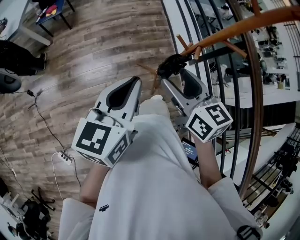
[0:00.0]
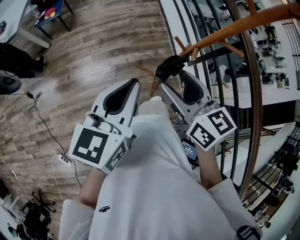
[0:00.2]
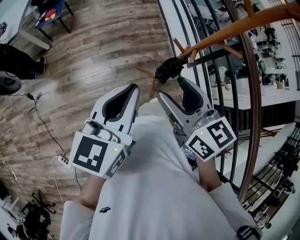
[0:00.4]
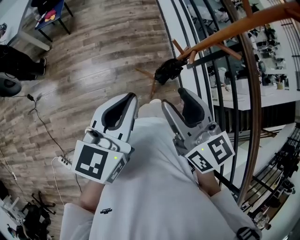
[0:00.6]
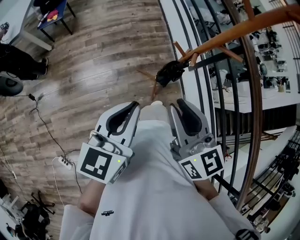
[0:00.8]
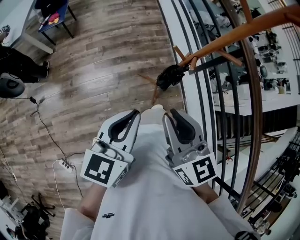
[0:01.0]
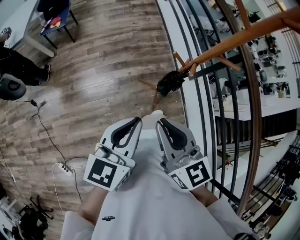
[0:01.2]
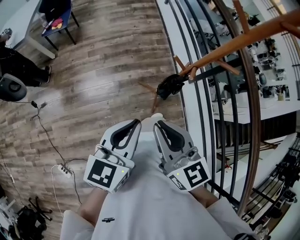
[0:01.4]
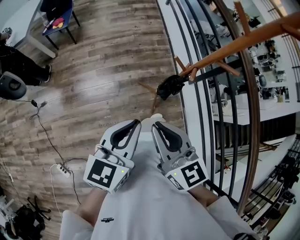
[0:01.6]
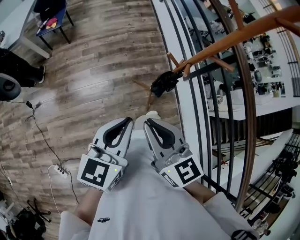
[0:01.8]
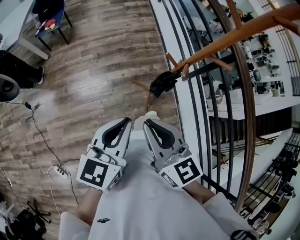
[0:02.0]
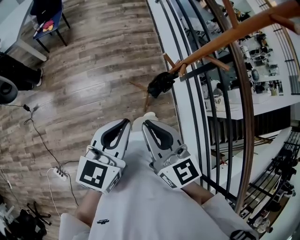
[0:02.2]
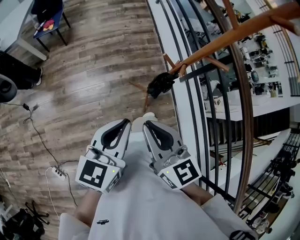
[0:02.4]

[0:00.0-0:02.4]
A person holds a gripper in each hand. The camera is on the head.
0:00.0 to 0:01.2: The right gripper is displaced backward by some 10 cm, and closes up; the left gripper heads backward, covering some 5 cm.
0:01.2 to 0:02.4: The grippers move only a little.

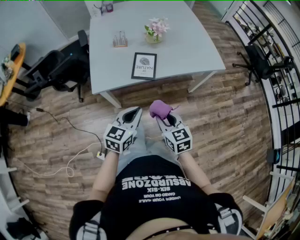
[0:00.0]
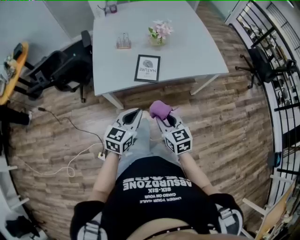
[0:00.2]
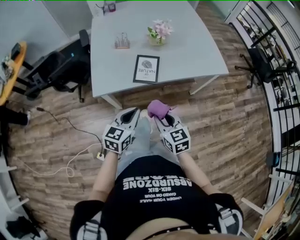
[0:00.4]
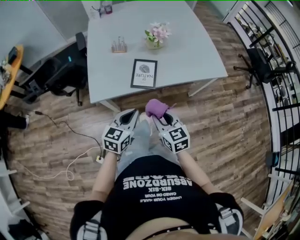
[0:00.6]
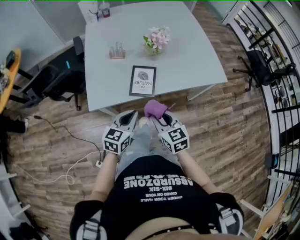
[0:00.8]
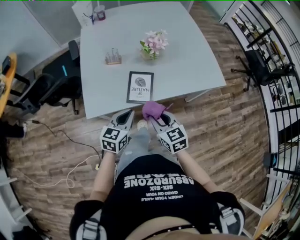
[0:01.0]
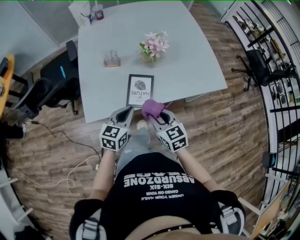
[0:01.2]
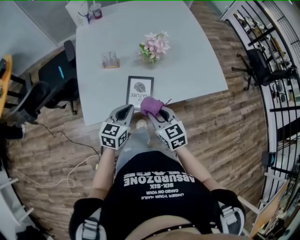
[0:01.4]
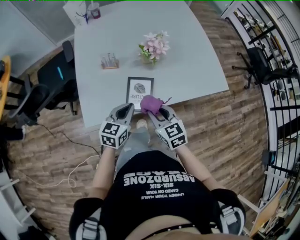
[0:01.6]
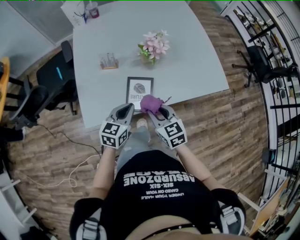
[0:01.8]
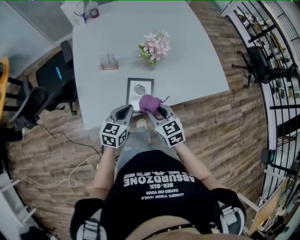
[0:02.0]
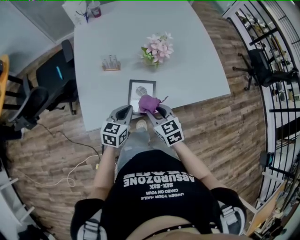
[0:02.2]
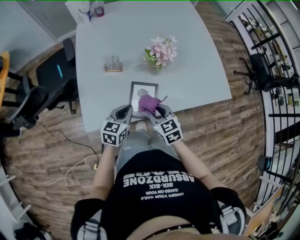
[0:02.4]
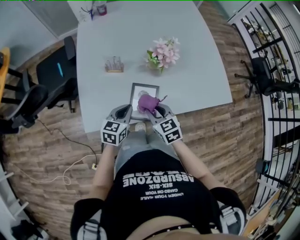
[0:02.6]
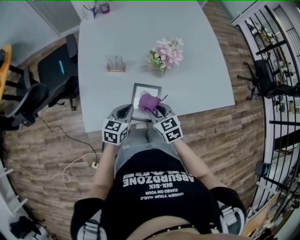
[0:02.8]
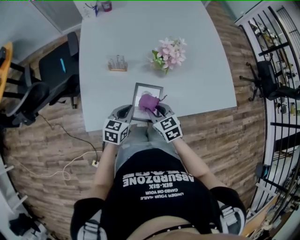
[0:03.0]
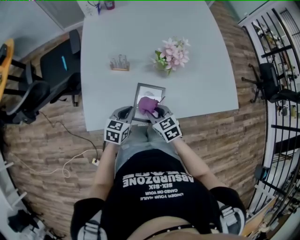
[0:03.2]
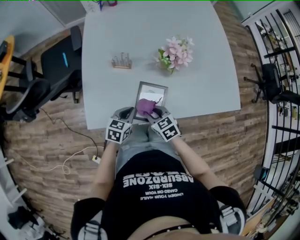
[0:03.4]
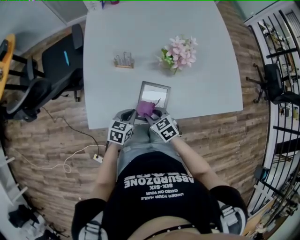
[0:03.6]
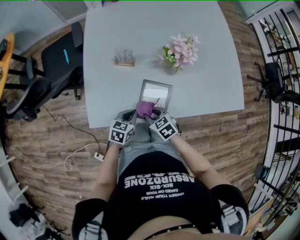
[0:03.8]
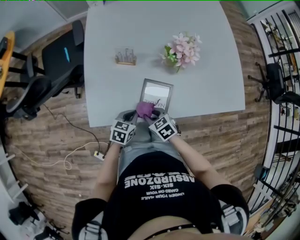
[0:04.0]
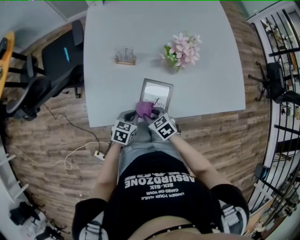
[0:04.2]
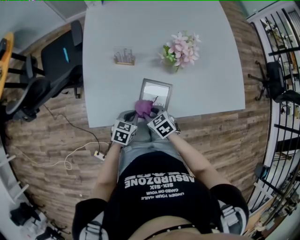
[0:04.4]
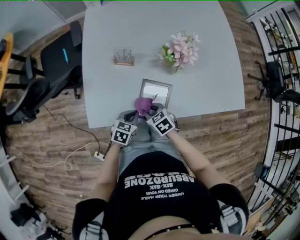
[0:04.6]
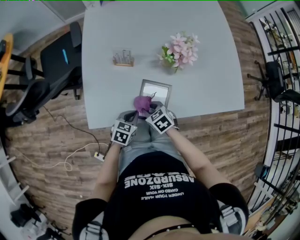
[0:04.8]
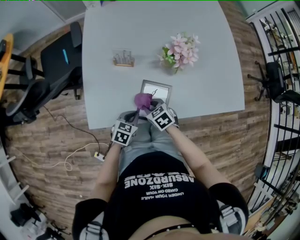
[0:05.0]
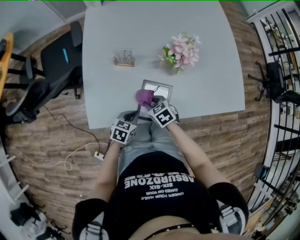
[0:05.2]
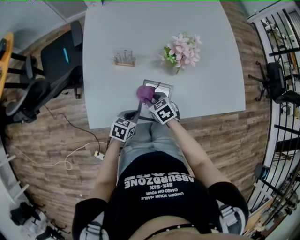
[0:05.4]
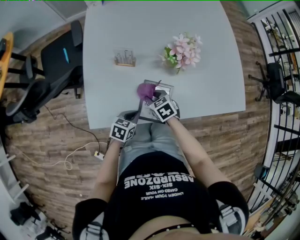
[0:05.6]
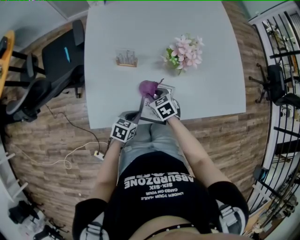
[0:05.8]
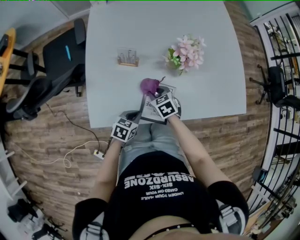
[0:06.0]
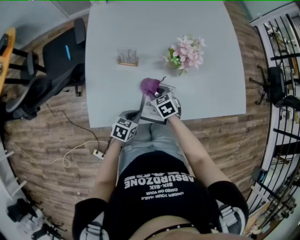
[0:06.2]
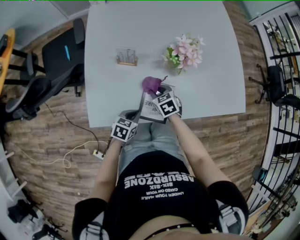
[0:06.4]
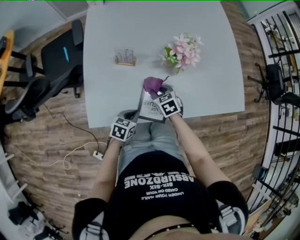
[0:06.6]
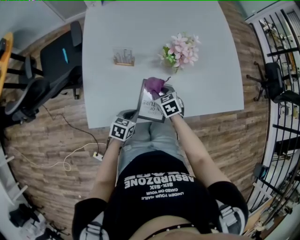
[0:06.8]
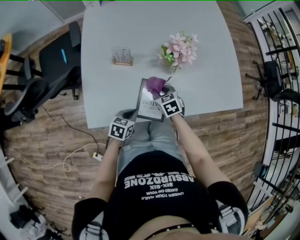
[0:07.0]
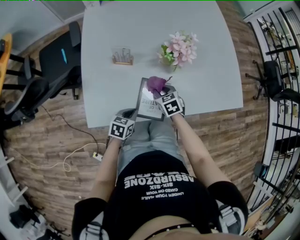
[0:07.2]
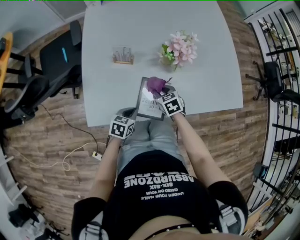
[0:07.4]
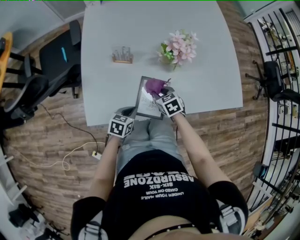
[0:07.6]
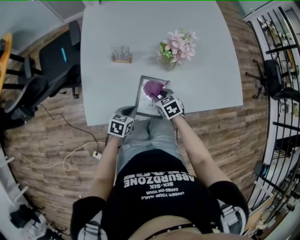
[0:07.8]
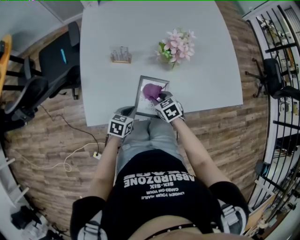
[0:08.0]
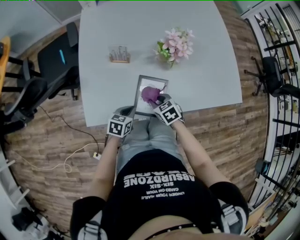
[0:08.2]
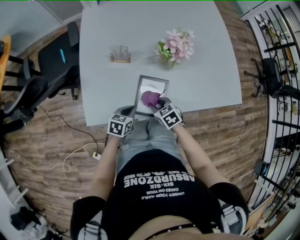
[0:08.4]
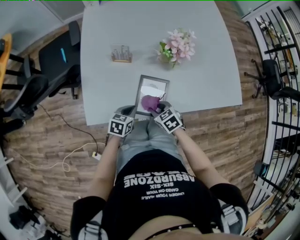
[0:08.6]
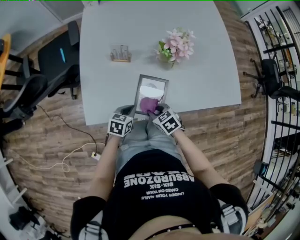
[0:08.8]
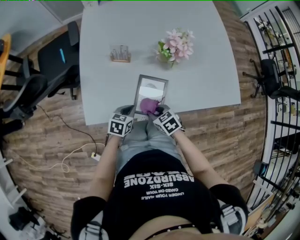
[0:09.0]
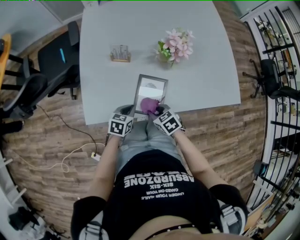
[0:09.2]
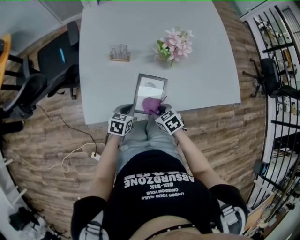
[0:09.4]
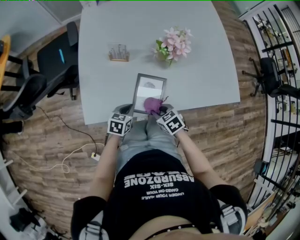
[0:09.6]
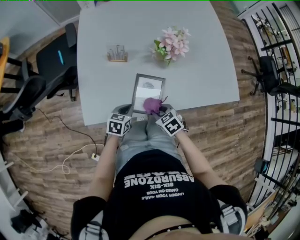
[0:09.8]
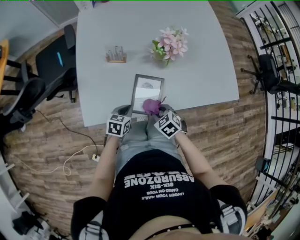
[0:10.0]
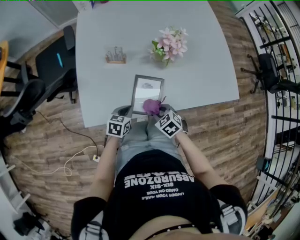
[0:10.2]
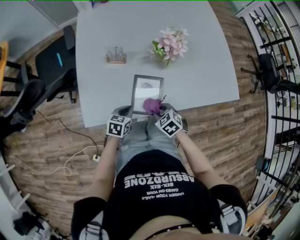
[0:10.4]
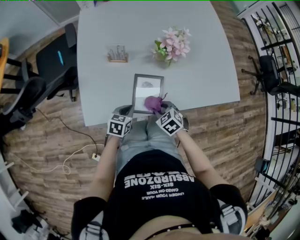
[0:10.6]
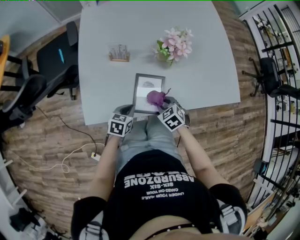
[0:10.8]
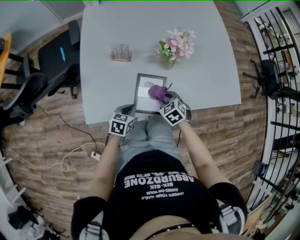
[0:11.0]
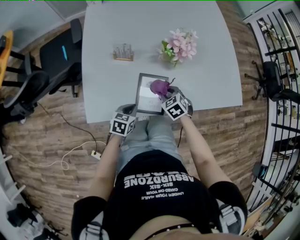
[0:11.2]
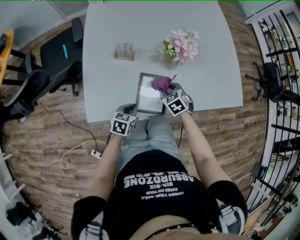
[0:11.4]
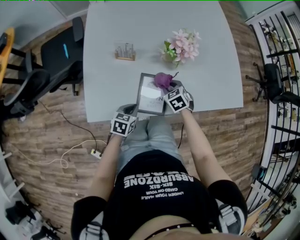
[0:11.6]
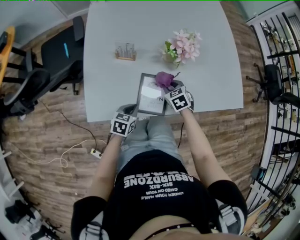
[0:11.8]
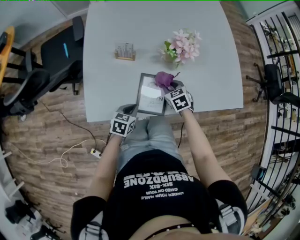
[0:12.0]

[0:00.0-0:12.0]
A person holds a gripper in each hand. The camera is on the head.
0:00.0 to 0:01.6: Both grippers travel together forward, some 25 cm.
0:01.6 to 0:03.0: The grippers both shift downward and forward by about 10 cm.
0:03.0 to 0:04.4: The left gripper travels downward by approximately 10 cm. The right gripper moves downward and to the left, approximately 10 cm, and turns by about 20 degrees.
0:04.4 to 0:06.0: The right gripper shifts some 10 cm forward.
0:06.0 to 0:07.6: The right gripper shifts some 5 cm to the right.
0:07.6 to 0:09.0: The right gripper shifts roughly 10 cm backward.
0:09.0 to 0:10.4: There are only small adjustments of the grippers.
0:10.4 to 0:12.0: The right gripper travels forward by some 15 cm.

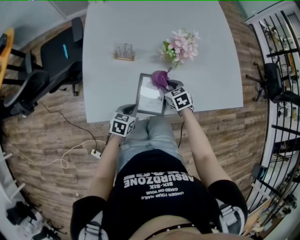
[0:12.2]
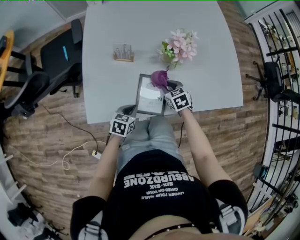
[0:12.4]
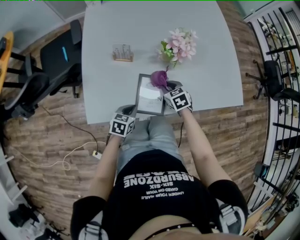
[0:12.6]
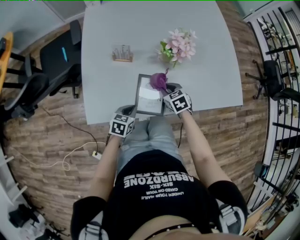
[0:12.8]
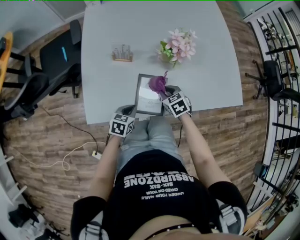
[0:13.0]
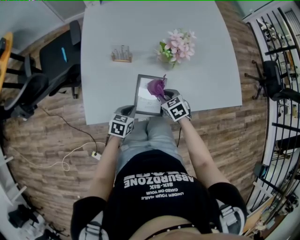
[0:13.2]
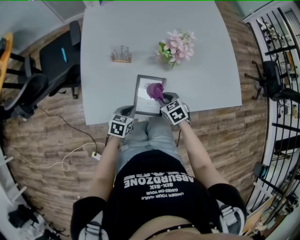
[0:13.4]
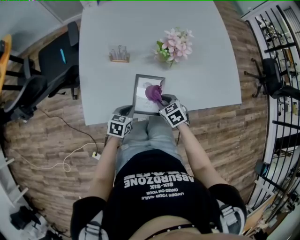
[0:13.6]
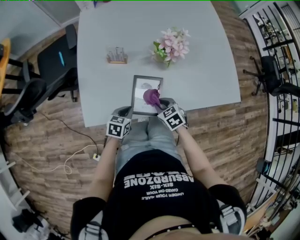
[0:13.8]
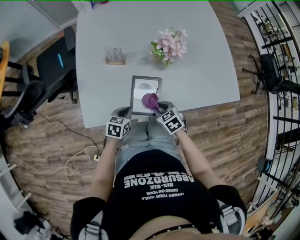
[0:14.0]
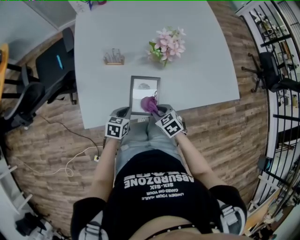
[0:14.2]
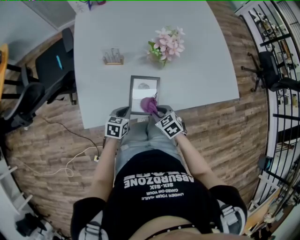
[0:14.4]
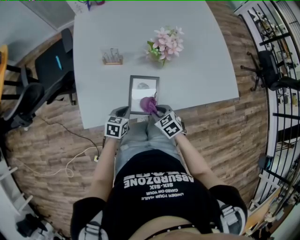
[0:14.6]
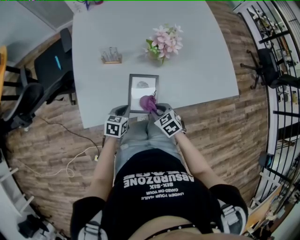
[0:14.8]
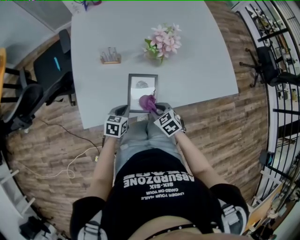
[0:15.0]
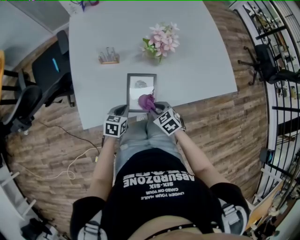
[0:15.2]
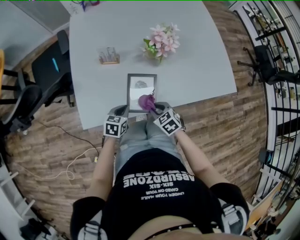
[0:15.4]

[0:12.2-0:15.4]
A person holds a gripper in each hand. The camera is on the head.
0:12.2 to 0:13.8: The right gripper travels backward by roughly 10 cm.
0:13.8 to 0:15.4: The grippers make only small movements.

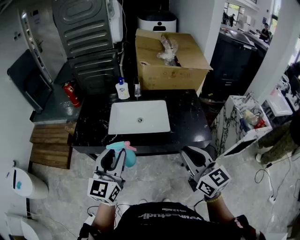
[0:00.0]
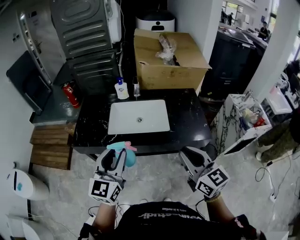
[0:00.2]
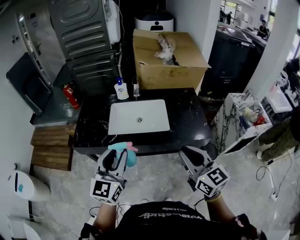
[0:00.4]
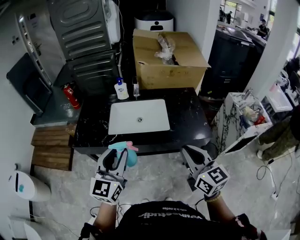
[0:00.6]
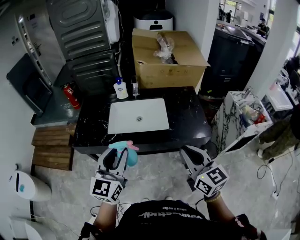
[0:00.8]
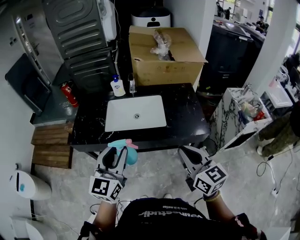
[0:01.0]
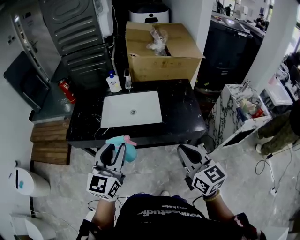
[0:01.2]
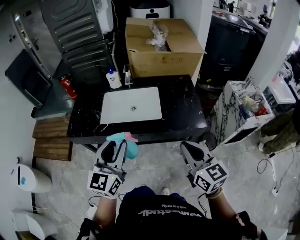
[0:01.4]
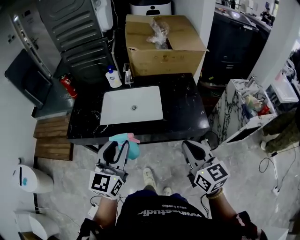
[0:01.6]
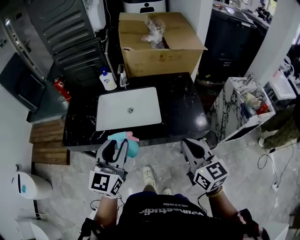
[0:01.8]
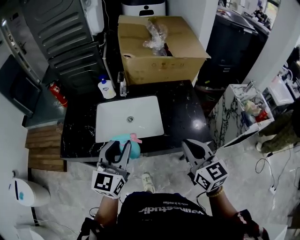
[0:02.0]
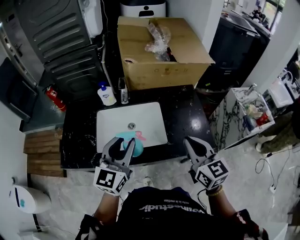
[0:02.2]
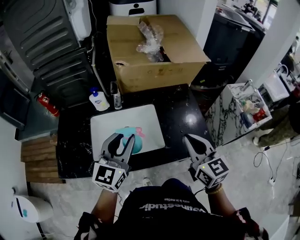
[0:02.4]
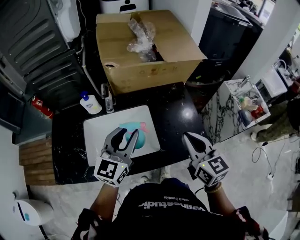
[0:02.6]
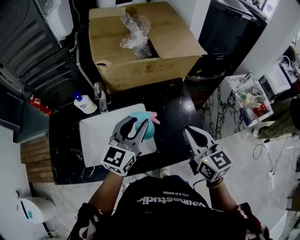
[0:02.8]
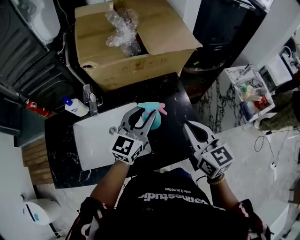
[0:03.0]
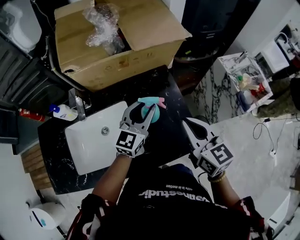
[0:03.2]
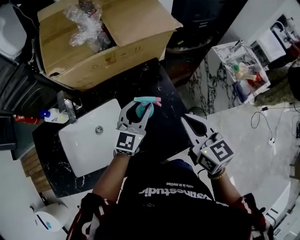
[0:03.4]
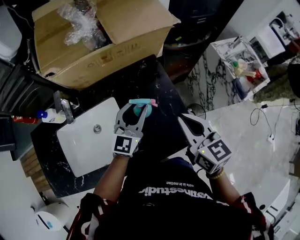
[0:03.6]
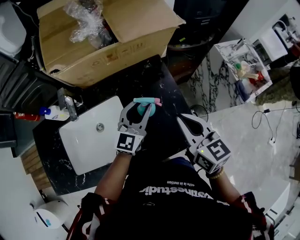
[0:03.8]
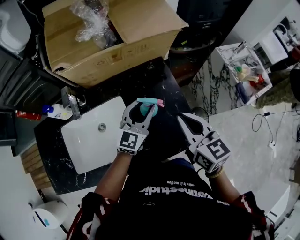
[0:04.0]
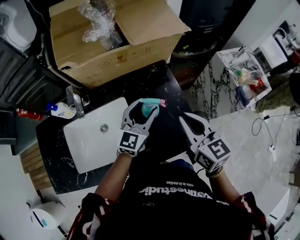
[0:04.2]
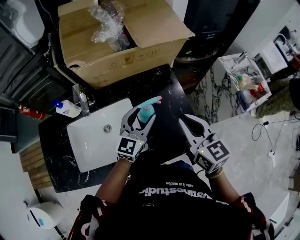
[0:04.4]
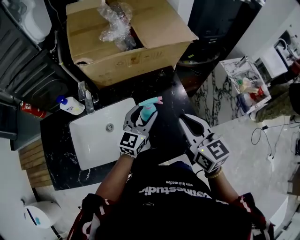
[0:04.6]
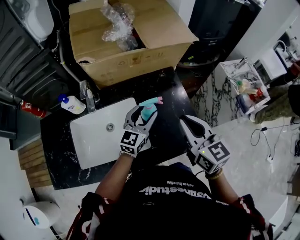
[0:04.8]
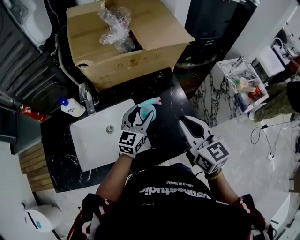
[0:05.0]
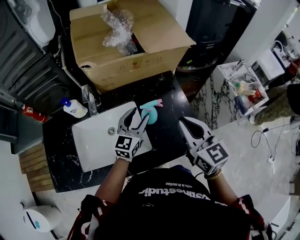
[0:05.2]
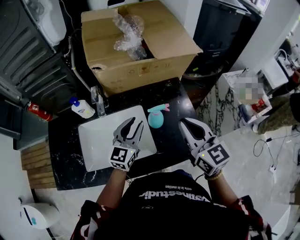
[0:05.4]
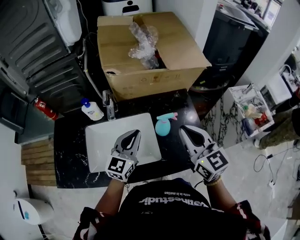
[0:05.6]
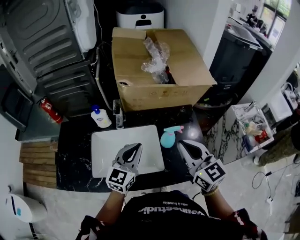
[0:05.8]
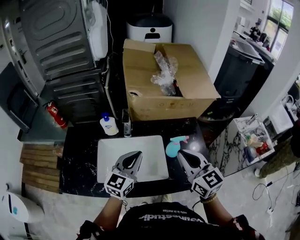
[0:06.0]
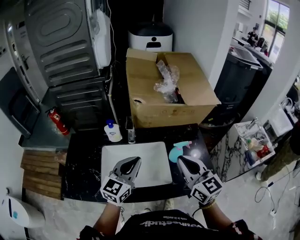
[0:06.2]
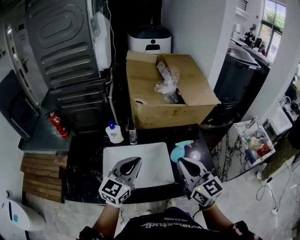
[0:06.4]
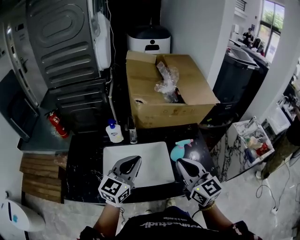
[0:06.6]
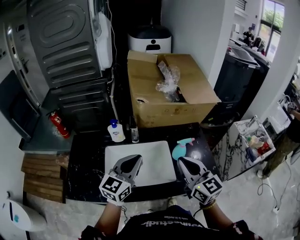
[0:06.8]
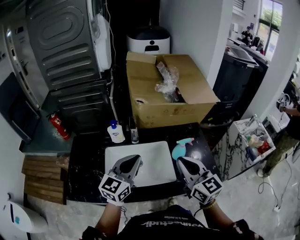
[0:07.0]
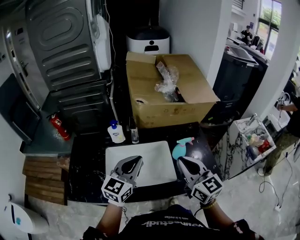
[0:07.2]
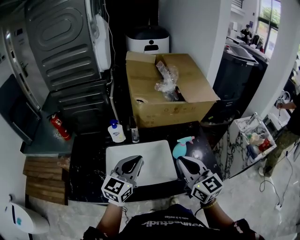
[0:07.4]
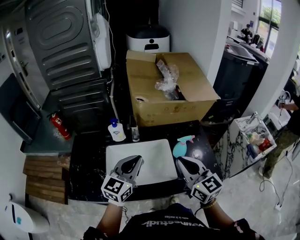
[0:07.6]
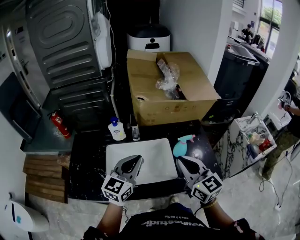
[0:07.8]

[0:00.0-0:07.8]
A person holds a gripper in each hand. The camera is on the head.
0:00.0 to 0:01.6: The two grippers go approximately 10 cm to the right.
0:01.6 to 0:03.2: The right gripper shifts roughly 35 cm forward. Meanwhile the left gripper goes roughly 50 cm forward and to the right, and turns by about 30 degrees.
0:03.2 to 0:04.6: The left gripper moves about 5 cm, and opens up. The right gripper ends up some 5 cm from where it was.
0:04.6 to 0:06.2: The right gripper heads to the left and upward, covering some 20 cm; the left gripper travels to the left, backward and upward by roughly 30 cm, and closes its fingers.
0:06.2 to 0:07.8: The grippers make only small movements.
